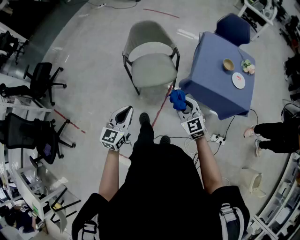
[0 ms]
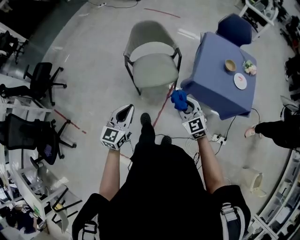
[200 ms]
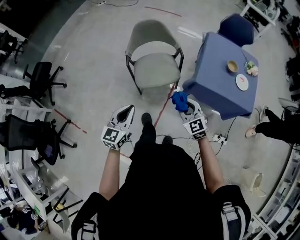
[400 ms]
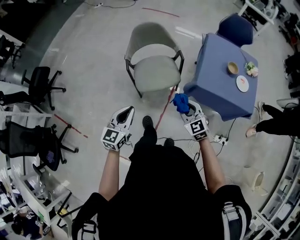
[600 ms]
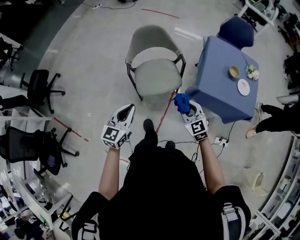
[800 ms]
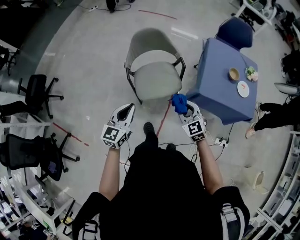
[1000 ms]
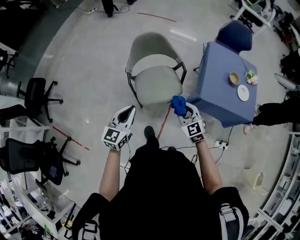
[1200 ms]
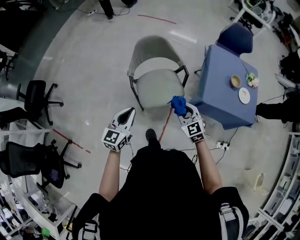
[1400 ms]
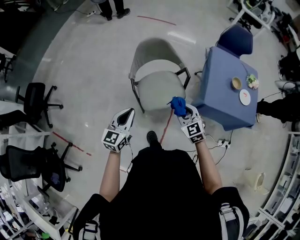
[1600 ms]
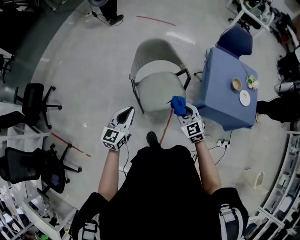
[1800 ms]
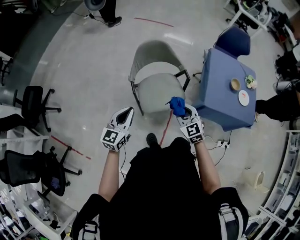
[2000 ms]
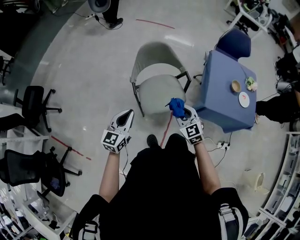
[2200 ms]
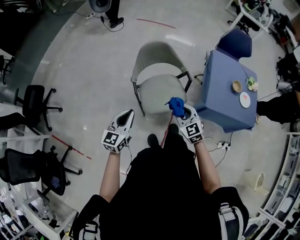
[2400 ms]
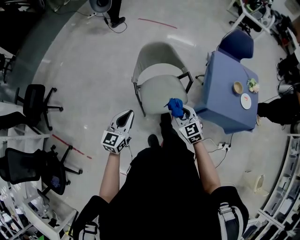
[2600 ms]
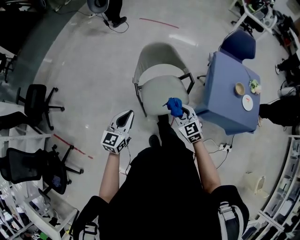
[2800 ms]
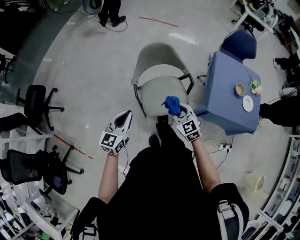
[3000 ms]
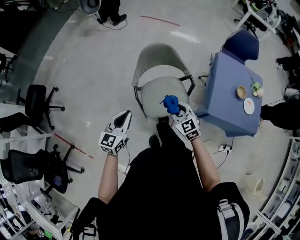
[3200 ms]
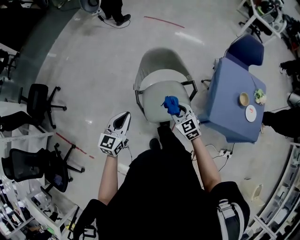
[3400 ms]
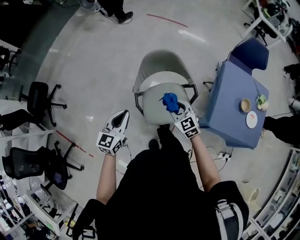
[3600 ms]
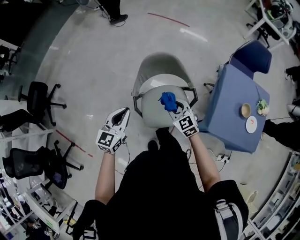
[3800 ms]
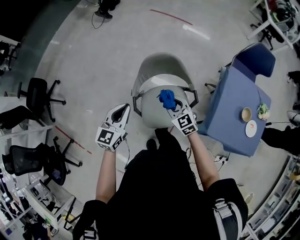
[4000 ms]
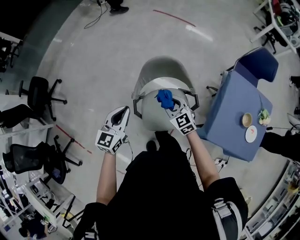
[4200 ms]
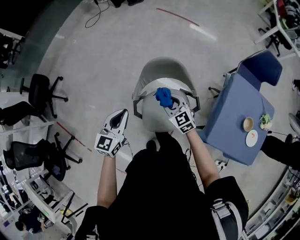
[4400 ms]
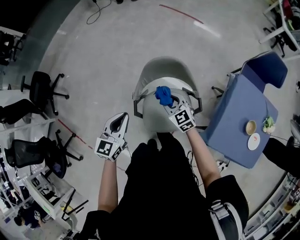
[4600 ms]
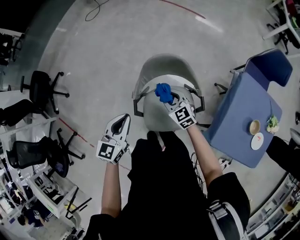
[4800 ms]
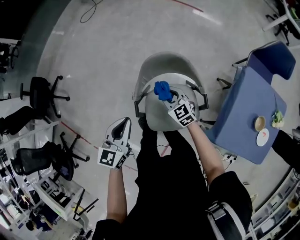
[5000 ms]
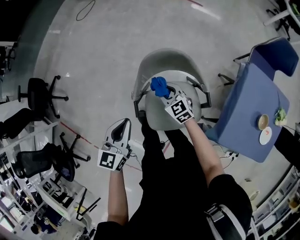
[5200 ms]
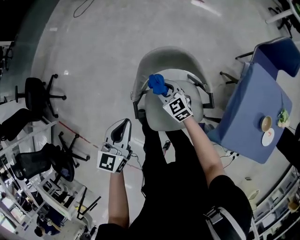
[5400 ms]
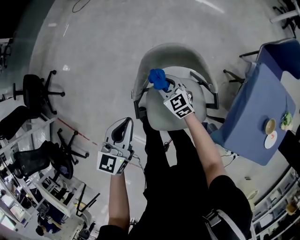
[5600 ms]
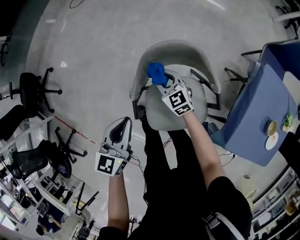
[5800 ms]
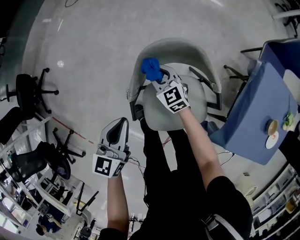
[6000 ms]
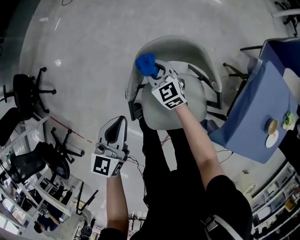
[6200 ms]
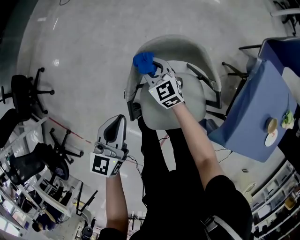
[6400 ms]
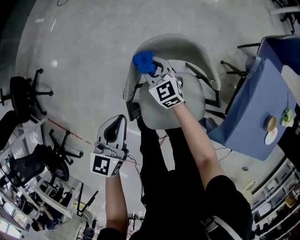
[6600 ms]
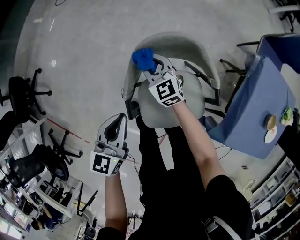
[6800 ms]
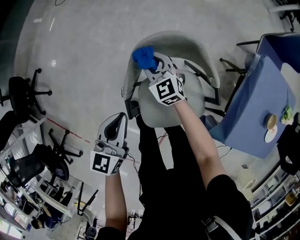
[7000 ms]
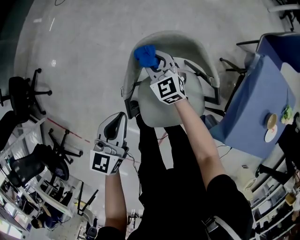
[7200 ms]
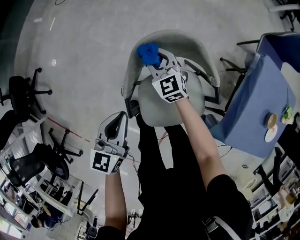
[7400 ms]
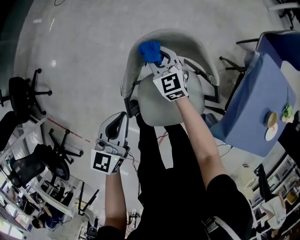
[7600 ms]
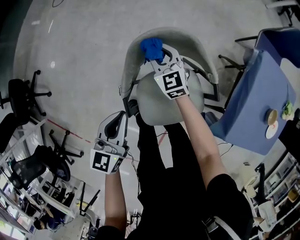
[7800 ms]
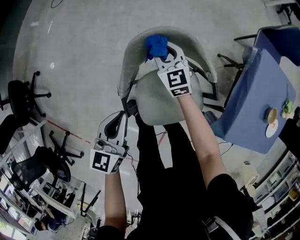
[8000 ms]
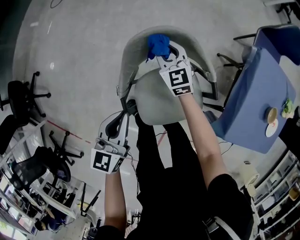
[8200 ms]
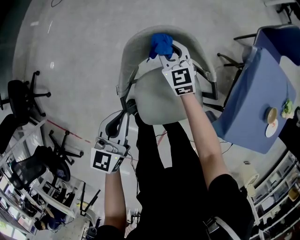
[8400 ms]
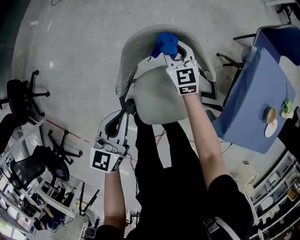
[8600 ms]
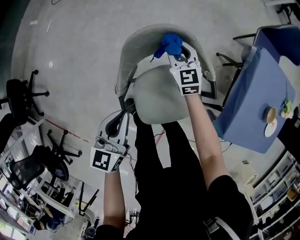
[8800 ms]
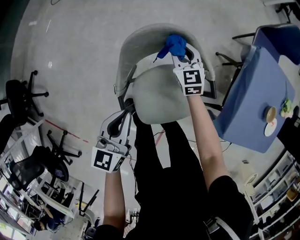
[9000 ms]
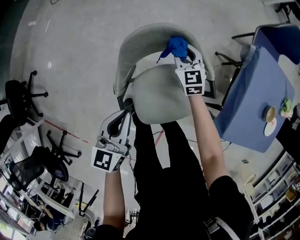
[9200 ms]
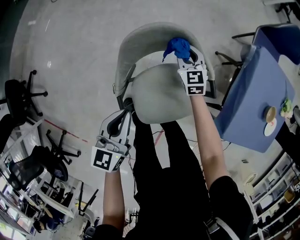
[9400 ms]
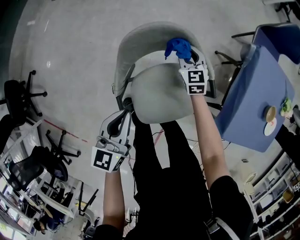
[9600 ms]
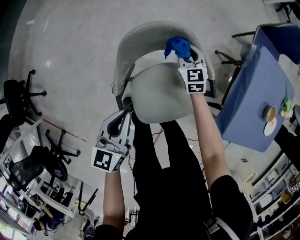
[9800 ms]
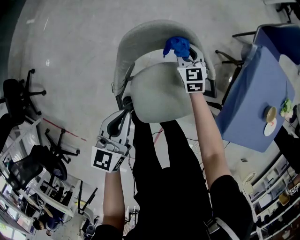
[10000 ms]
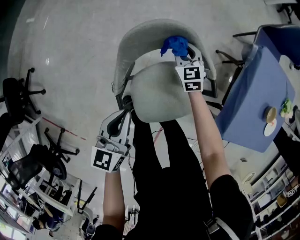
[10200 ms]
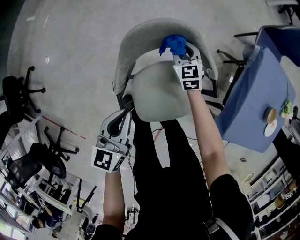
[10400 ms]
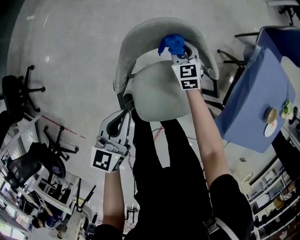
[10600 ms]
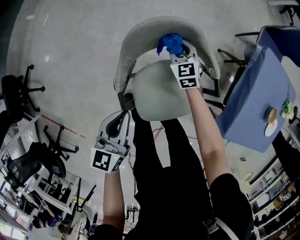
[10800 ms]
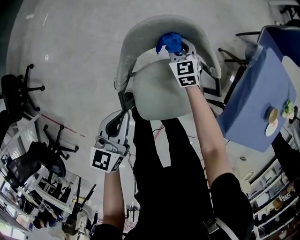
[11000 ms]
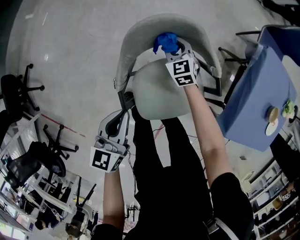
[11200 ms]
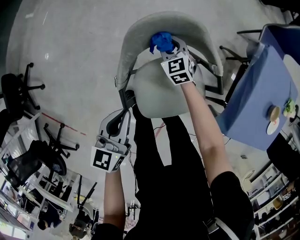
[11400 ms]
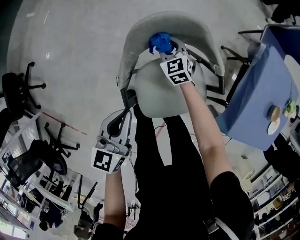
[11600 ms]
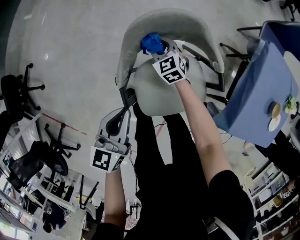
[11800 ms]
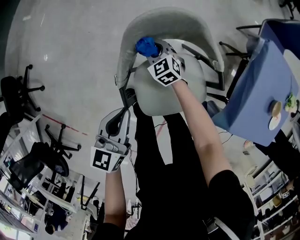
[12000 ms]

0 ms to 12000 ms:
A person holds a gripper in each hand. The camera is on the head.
0 ms to 1600 ms: Both grippers travel together forward and to the left, approximately 25 cm.
1600 ms to 3000 ms: The right gripper moves forward and to the left, some 10 cm; the left gripper moves some 5 cm.
3000 ms to 4400 ms: Both grippers travel together forward, roughly 25 cm.
4400 ms to 6000 ms: The left gripper is displaced downward and forward by about 20 cm. Meanwhile the right gripper shifts some 30 cm downward and forward.
6000 ms to 7600 ms: The right gripper moves roughly 5 cm.
7600 ms to 9000 ms: The right gripper moves to the right, about 15 cm.
9000 ms to 10400 ms: The right gripper travels downward by approximately 5 cm.
10400 ms to 12000 ms: The right gripper heads to the left, covering about 15 cm, and swivels some 20 degrees.

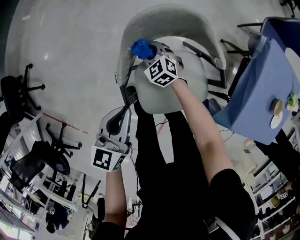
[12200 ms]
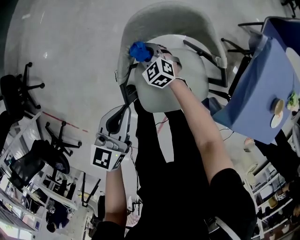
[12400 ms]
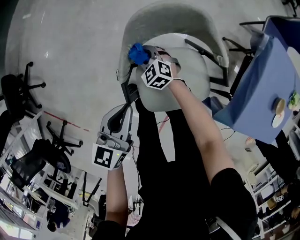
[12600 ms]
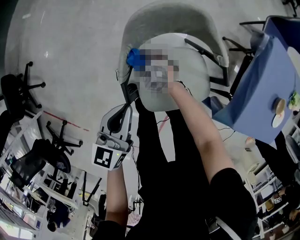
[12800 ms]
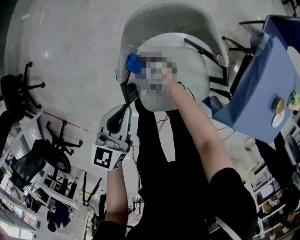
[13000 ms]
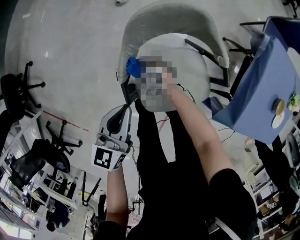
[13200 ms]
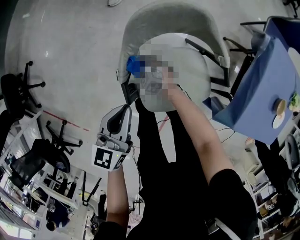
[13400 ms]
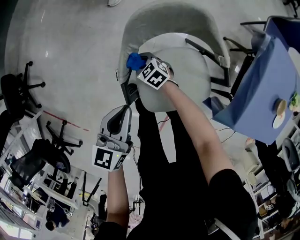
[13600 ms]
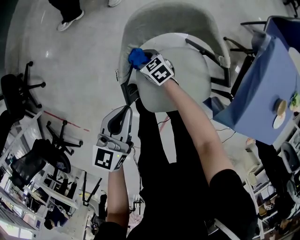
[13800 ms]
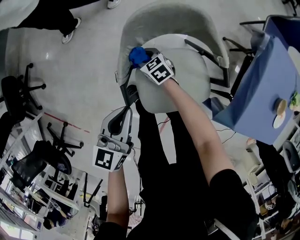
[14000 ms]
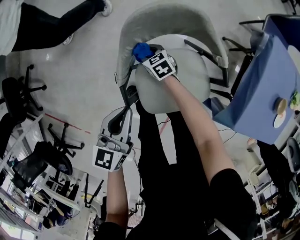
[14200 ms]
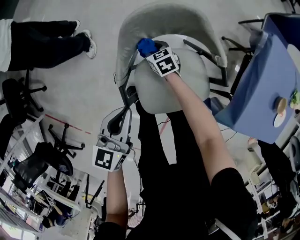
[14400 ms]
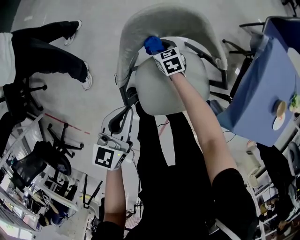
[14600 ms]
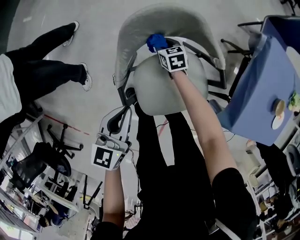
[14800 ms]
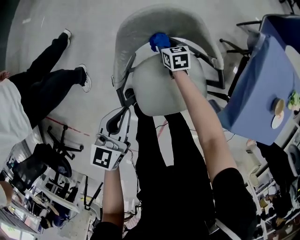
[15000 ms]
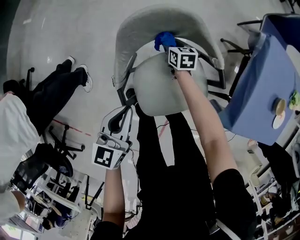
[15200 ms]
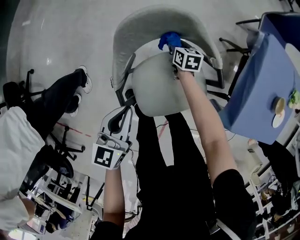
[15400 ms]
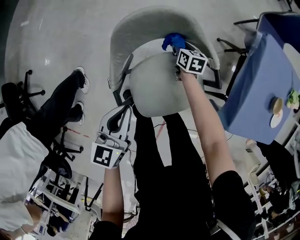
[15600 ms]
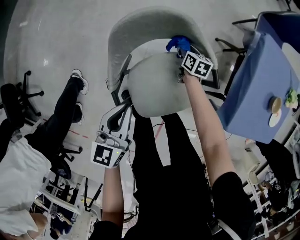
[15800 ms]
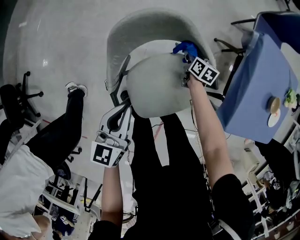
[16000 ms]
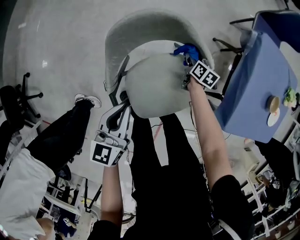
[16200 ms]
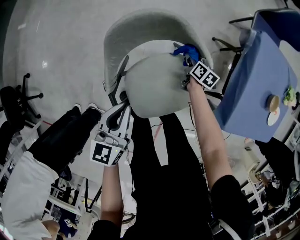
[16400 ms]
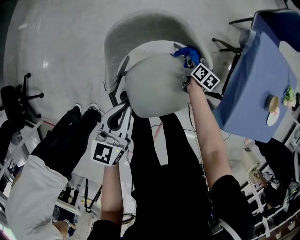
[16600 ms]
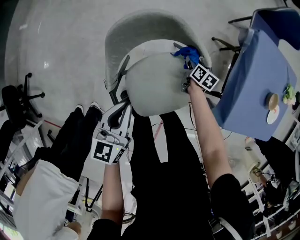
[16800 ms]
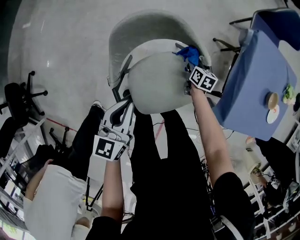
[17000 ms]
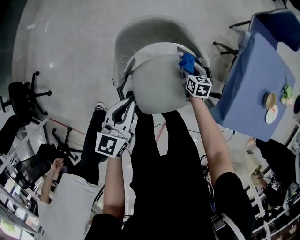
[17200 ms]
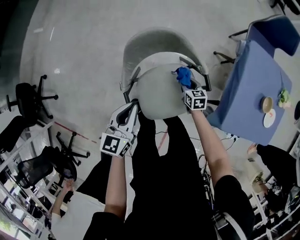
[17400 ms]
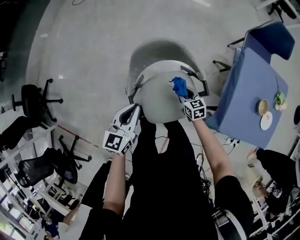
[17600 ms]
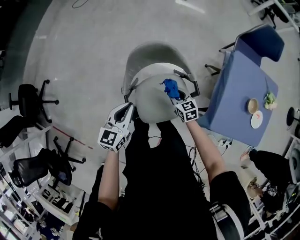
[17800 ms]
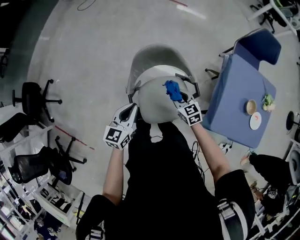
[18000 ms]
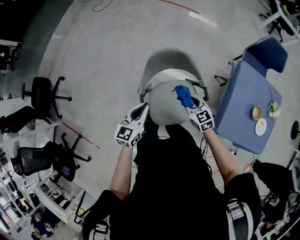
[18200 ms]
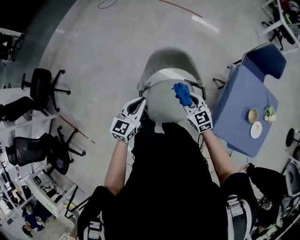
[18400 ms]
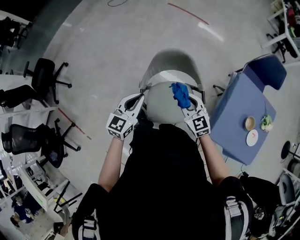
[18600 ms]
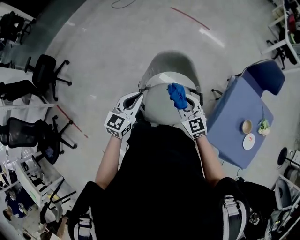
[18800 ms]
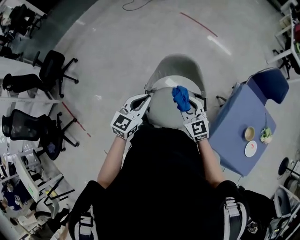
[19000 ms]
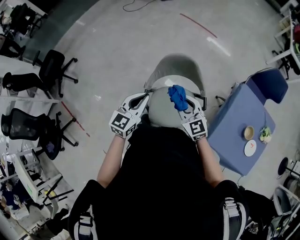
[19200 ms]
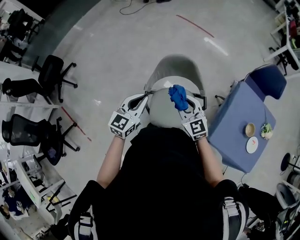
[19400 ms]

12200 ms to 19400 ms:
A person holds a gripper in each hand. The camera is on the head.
12200 ms to 13600 ms: The right gripper moves to the left, backward and downward, approximately 10 cm, and swivels roughly 20 degrees.
13600 ms to 15000 ms: The right gripper heads to the right and forward, covering some 20 cm, and turns by about 40 degrees.
15000 ms to 16600 ms: The right gripper is displaced to the right by some 20 cm, and rotates around the line of its fingers by some 40 degrees, clockwise from behind.
16600 ms to 18000 ms: The left gripper is displaced upward by roughly 15 cm; the right gripper goes about 35 cm upward, backward and to the left, and rolls counterclockwise, seen from behind, by approximately 60 degrees.
18000 ms to 19400 ms: The left gripper is displaced upward and backward by roughly 10 cm; the right gripper goes approximately 20 cm upward and backward, and turns by some 30 degrees.

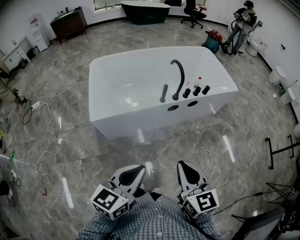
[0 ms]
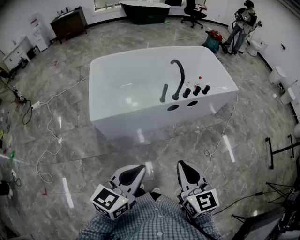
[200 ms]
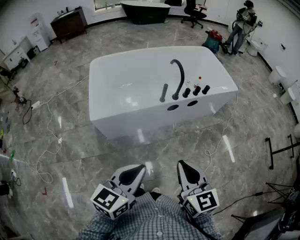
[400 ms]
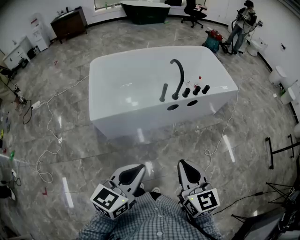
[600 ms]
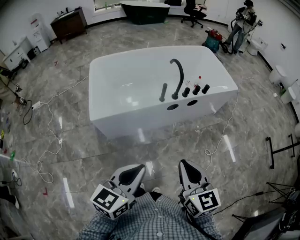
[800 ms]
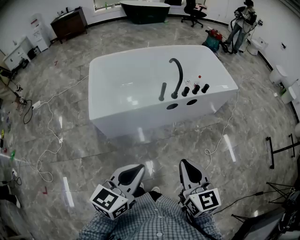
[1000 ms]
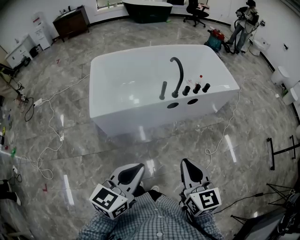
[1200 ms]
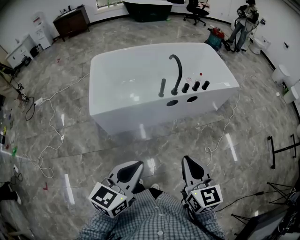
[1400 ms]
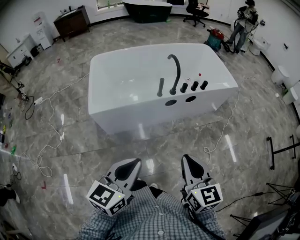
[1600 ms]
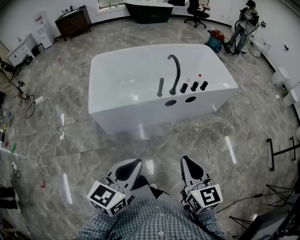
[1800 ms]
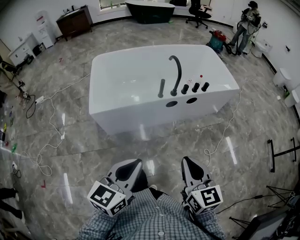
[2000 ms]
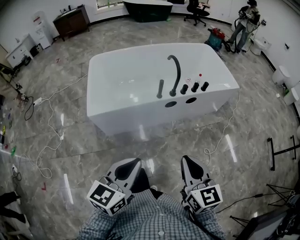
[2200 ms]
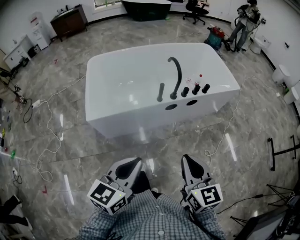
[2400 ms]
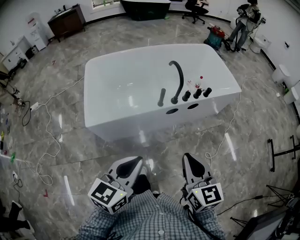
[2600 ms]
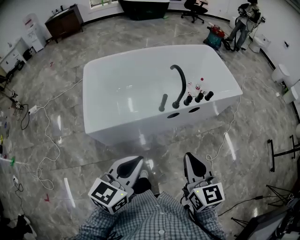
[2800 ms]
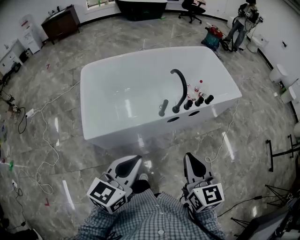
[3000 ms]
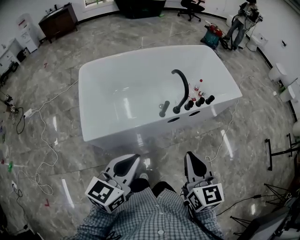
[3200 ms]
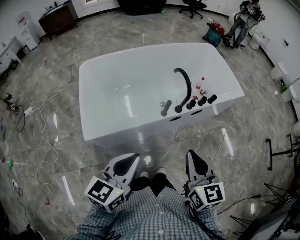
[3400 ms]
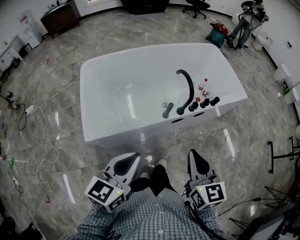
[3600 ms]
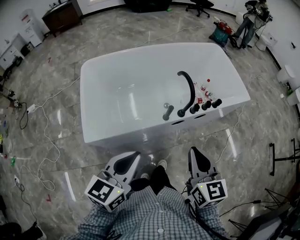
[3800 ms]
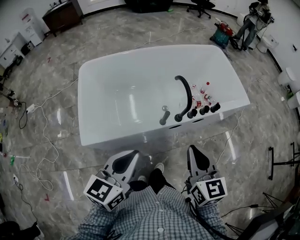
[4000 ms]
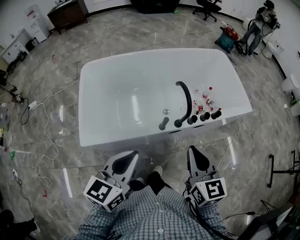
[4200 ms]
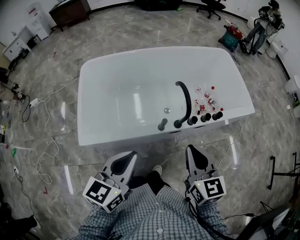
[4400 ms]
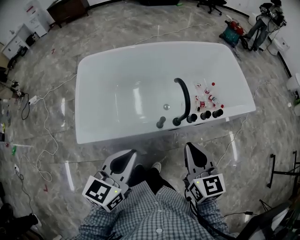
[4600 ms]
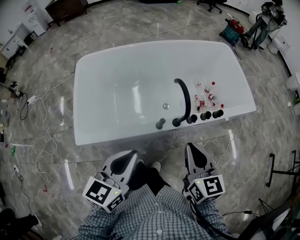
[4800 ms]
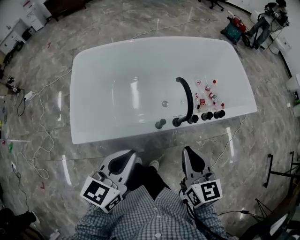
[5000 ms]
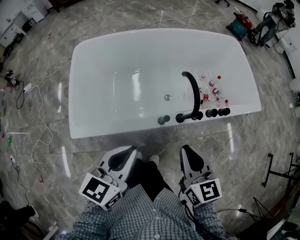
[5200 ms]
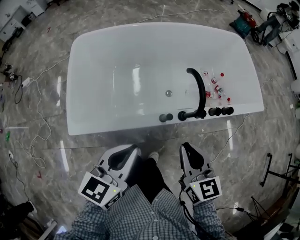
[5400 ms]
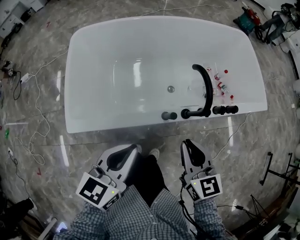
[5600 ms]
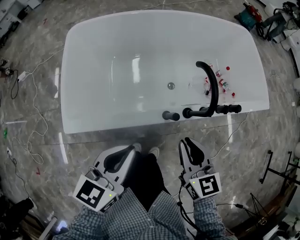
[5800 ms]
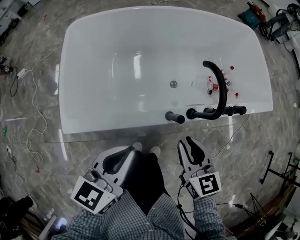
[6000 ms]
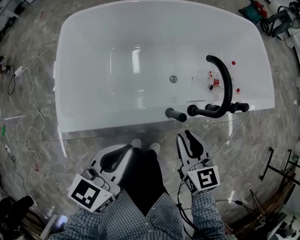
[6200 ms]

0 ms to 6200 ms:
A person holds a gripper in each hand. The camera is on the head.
0 ms to 1600 ms: The right gripper shifts about 5 cm to the right.
1600 ms to 3200 ms: The two grippers go roughly 20 cm forward and to the left.
3200 ms to 4600 ms: Both grippers move forward, some 15 cm.
4600 ms to 6200 ms: The two grippers go some 15 cm downward.
